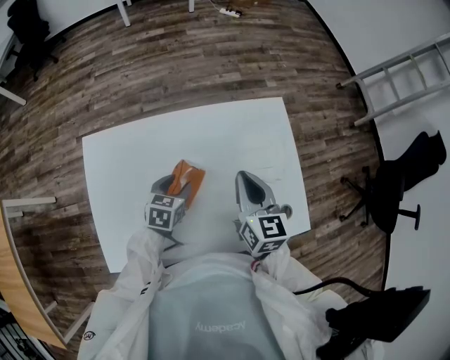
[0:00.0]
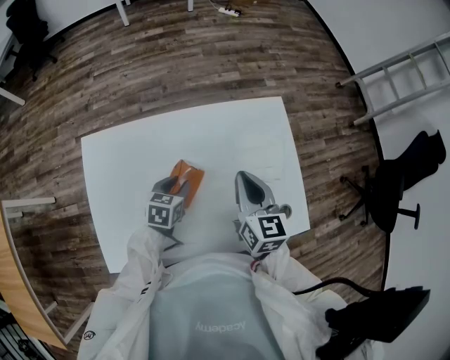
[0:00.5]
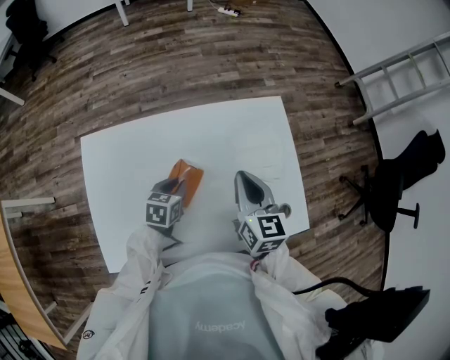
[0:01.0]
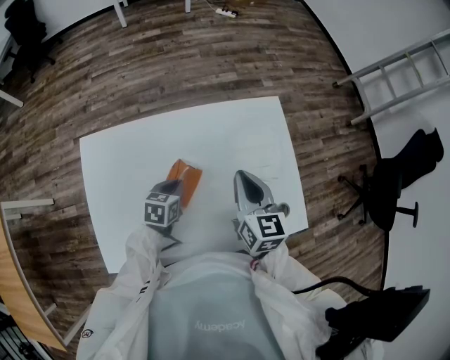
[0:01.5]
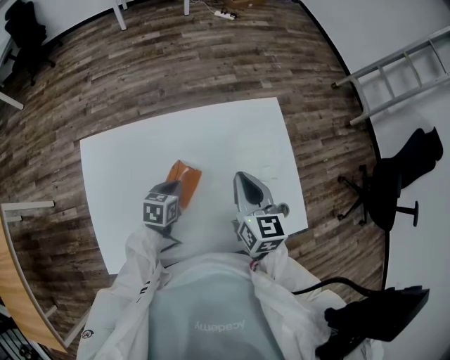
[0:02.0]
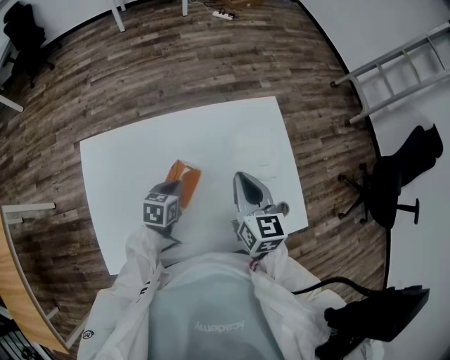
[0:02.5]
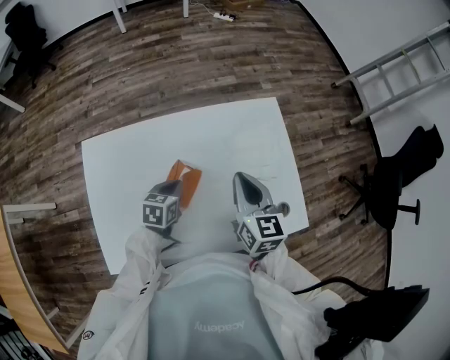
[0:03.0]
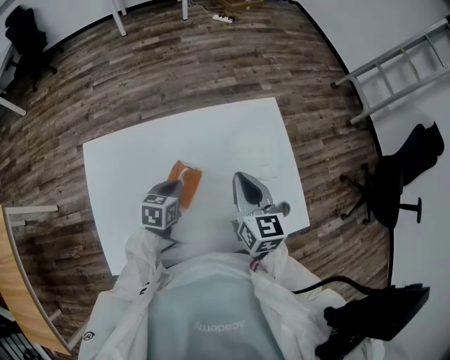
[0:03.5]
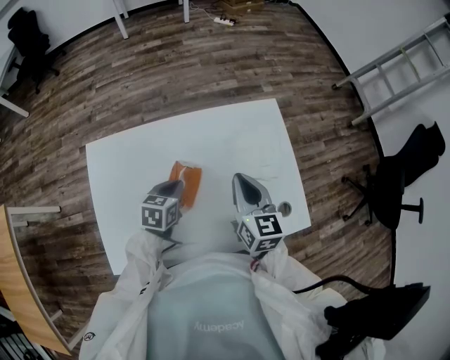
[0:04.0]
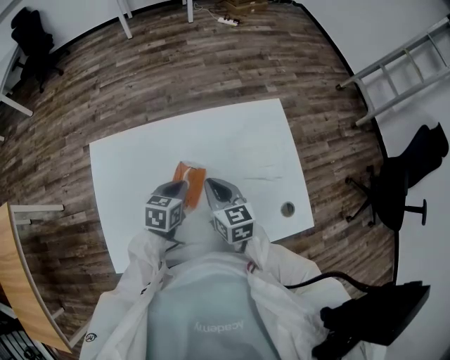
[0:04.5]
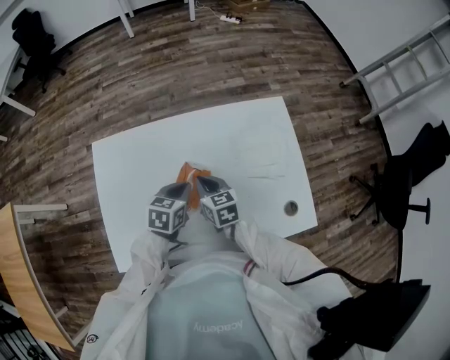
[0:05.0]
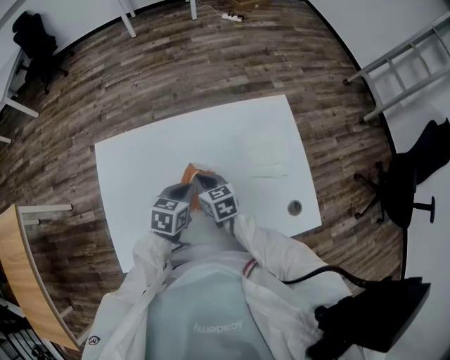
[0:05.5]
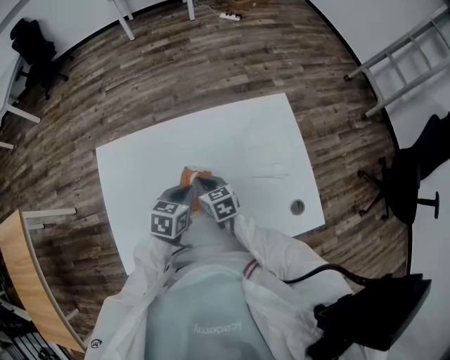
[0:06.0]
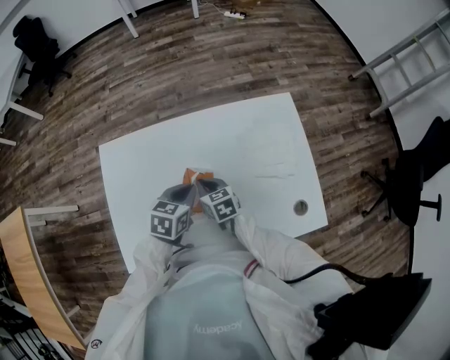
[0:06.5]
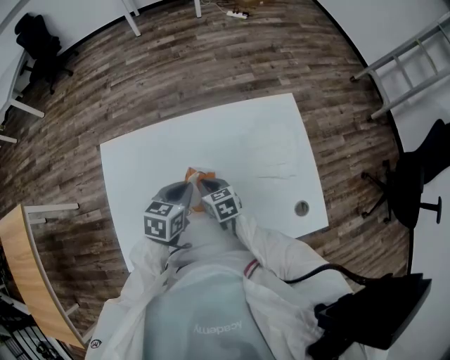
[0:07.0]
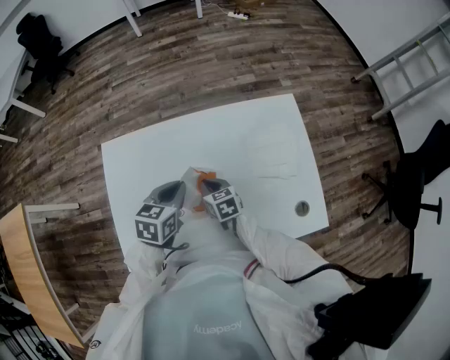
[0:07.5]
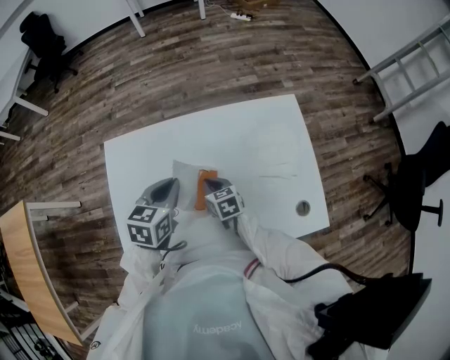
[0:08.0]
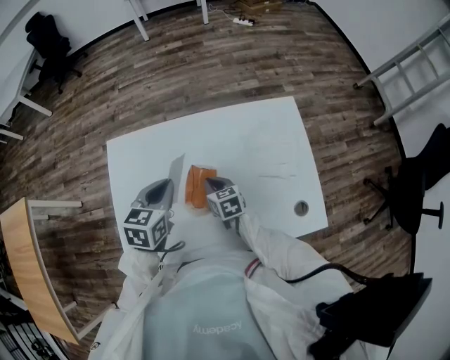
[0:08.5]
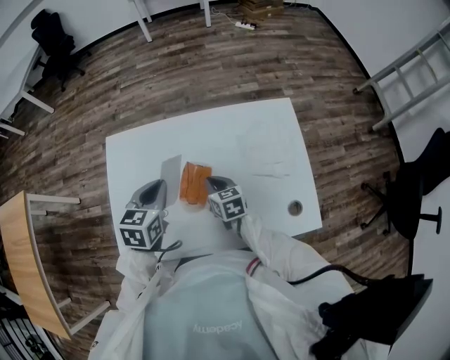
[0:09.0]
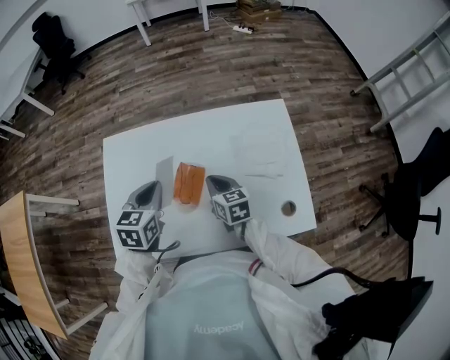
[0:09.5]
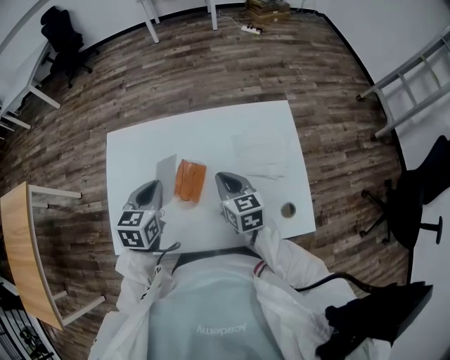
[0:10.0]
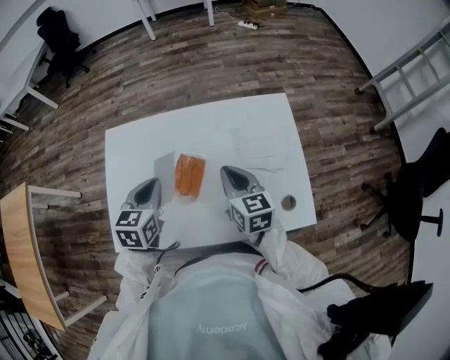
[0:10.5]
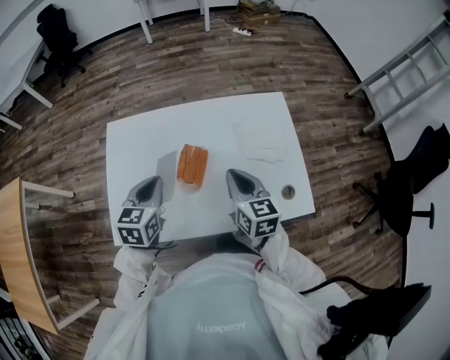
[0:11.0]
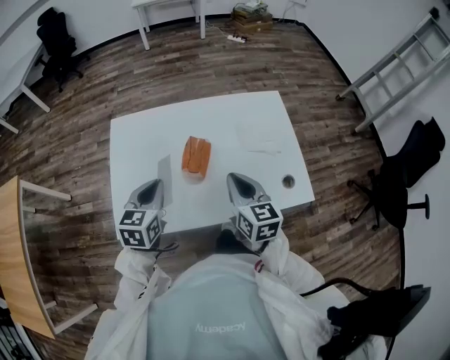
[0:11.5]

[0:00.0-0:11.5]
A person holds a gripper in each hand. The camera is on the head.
0:00.0 to 0:02.0: The left gripper closes.
0:02.0 to 0:04.0: The grippers make only small movements.
0:04.0 to 0:06.0: The right gripper is displaced downward and to the left by approximately 20 cm, and swivels about 30 degrees.
0:06.0 to 0:07.5: The left gripper heads upward, covering roughly 5 cm.
0:07.5 to 0:09.5: The left gripper changes place by about 5 cm; the right gripper moves upward and to the right, roughly 10 cm.
0:09.5 to 0:11.5: The left gripper travels backward by some 10 cm; the right gripper travels upward and backward by approximately 15 cm.

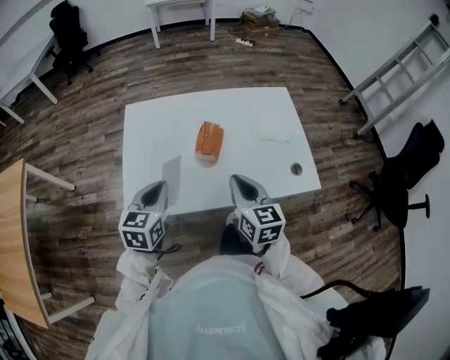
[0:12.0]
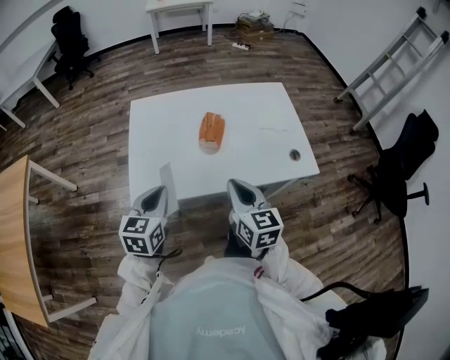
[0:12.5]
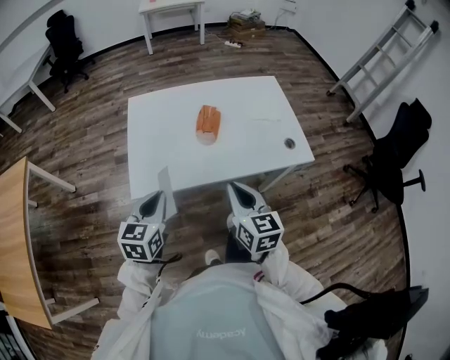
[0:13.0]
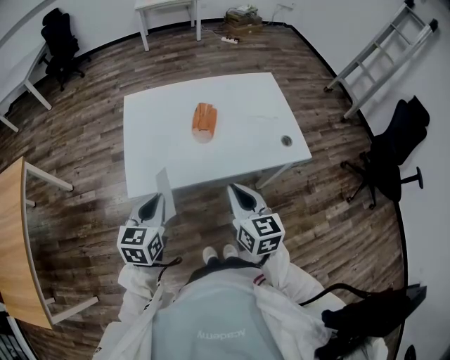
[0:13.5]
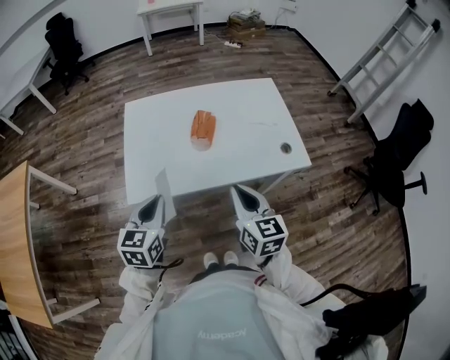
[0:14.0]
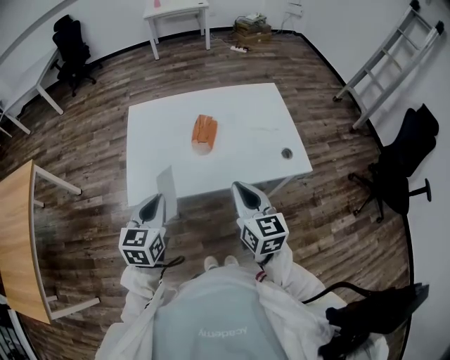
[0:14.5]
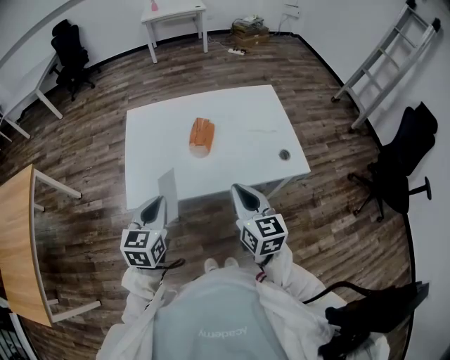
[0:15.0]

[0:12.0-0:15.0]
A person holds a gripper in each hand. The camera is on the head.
0:12.0 to 0:13.5: Both grippers move backward, about 15 cm.
0:13.5 to 0:15.0: The left gripper shifts by about 5 cm; the right gripper changes place by some 5 cm.

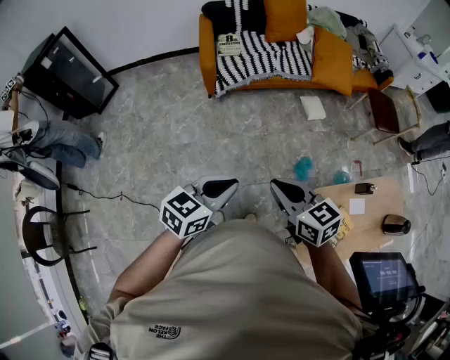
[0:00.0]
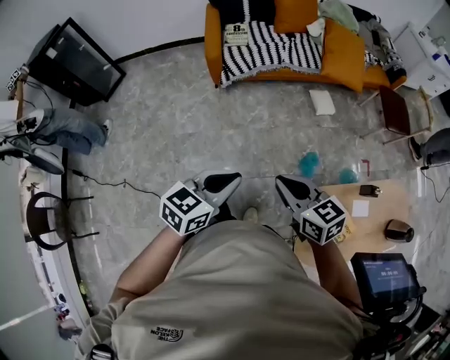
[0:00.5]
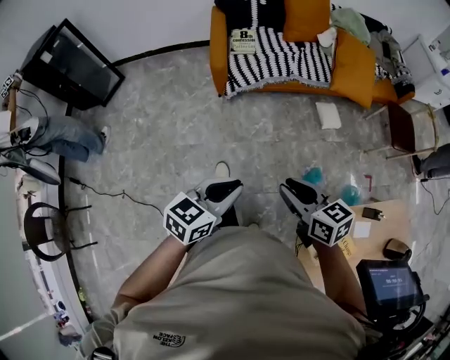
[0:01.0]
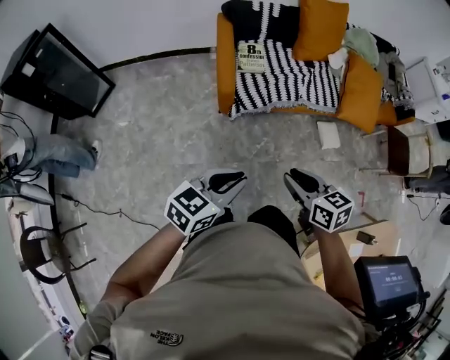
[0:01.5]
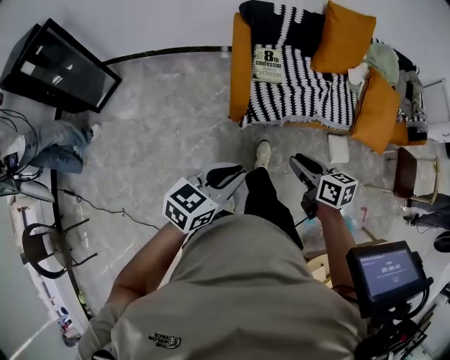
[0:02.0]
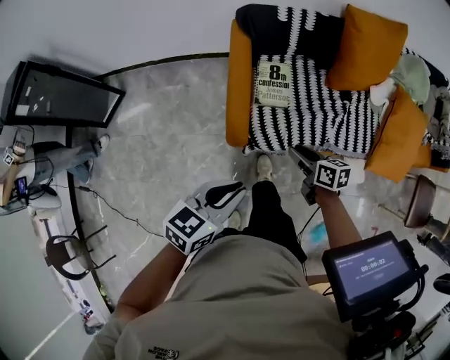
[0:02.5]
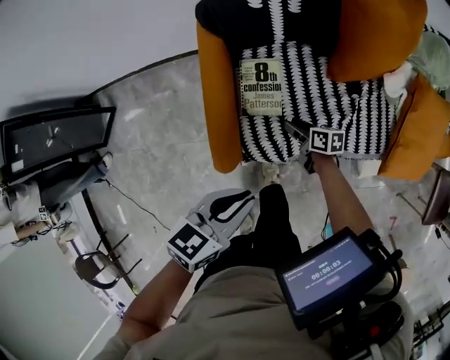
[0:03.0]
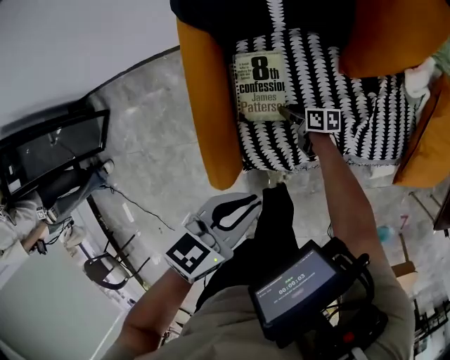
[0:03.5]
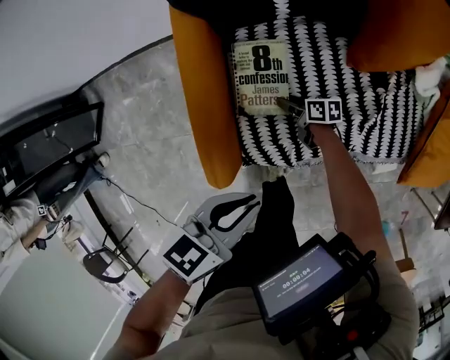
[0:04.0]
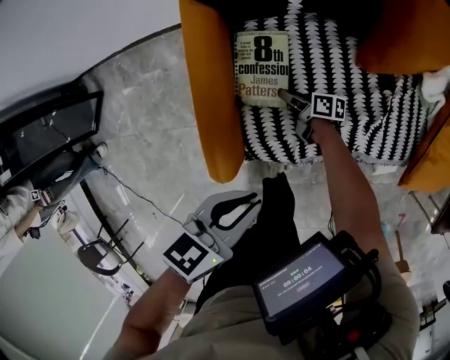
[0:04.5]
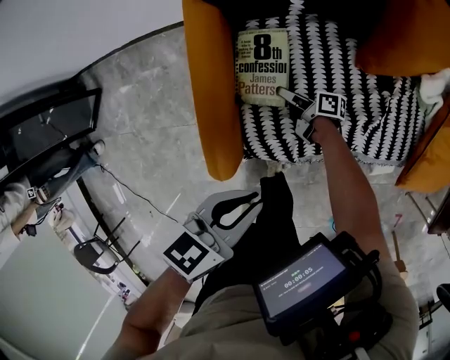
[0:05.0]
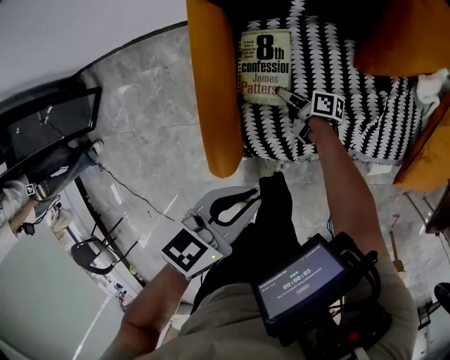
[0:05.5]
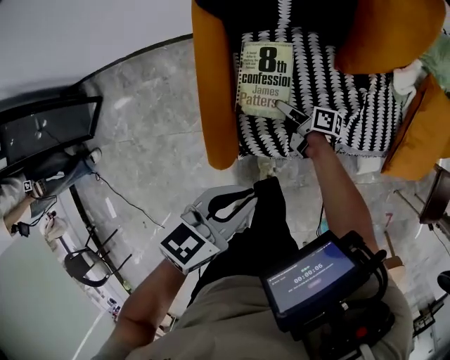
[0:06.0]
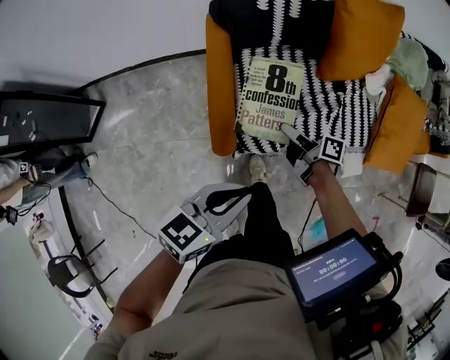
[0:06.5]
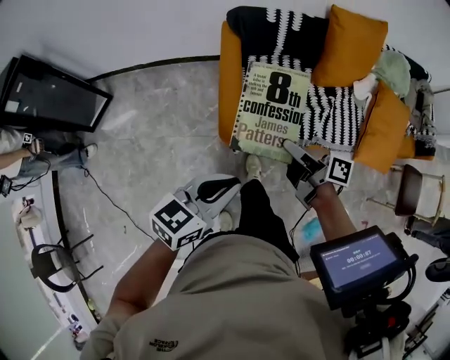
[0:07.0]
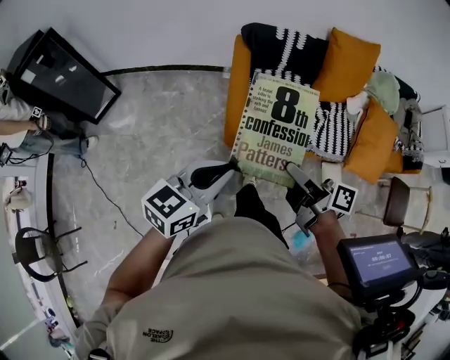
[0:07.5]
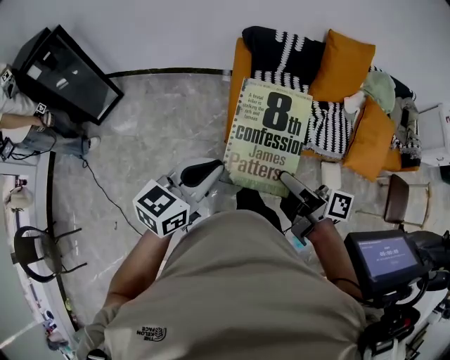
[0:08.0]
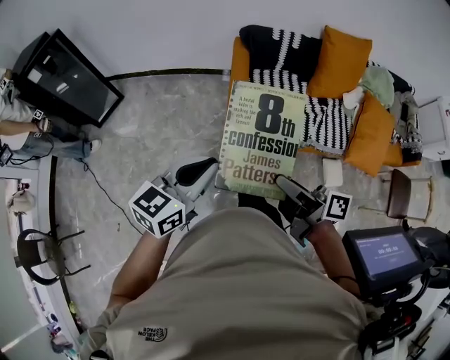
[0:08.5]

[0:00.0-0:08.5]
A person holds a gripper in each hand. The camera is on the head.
0:00.0 to 0:02.0: Both grippers are carried forward, approximately 50 cm. The right gripper turns by some 20 degrees, and opens.
0:02.0 to 0:04.0: The pair of grippers is taken some 40 cm. The right gripper changes its angle by some 30 degrees, and opens up. Meanwhile the left gripper rotates some 20 degrees.
0:04.0 to 0:06.5: The left gripper ends up roughly 20 cm from where it was, while the right gripper moves upward, approximately 25 cm, and swivels roughly 30 degrees.
0:06.5 to 0:08.5: The left gripper goes roughly 25 cm backward, upward and to the left, and turns by roughly 20 degrees. The right gripper is displaced backward and upward by roughly 40 cm, and rotates some 20 degrees.

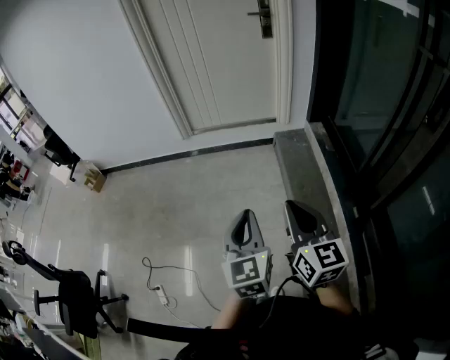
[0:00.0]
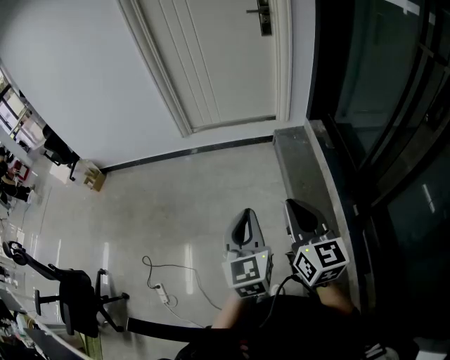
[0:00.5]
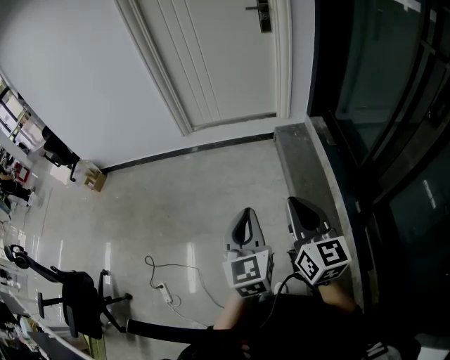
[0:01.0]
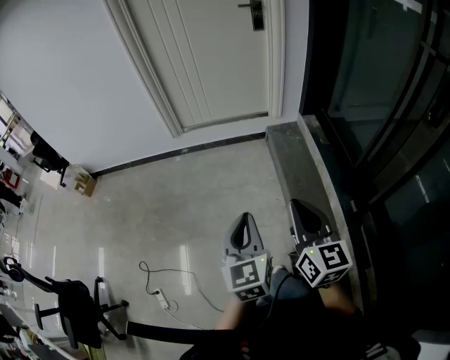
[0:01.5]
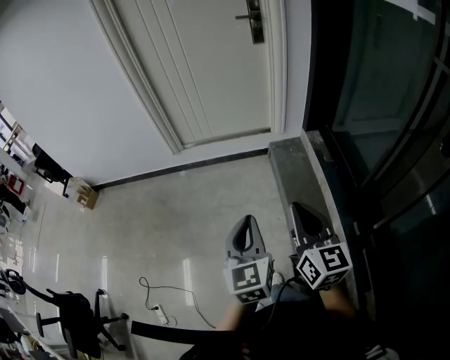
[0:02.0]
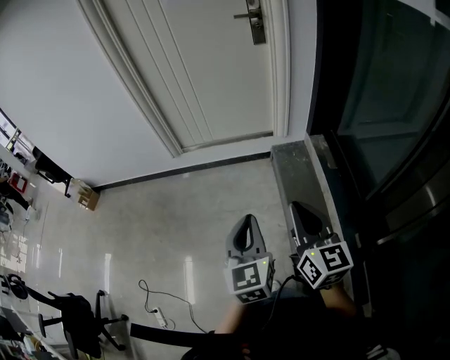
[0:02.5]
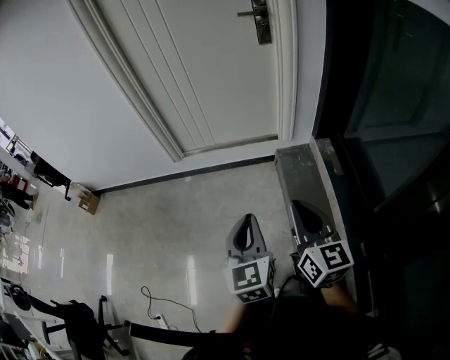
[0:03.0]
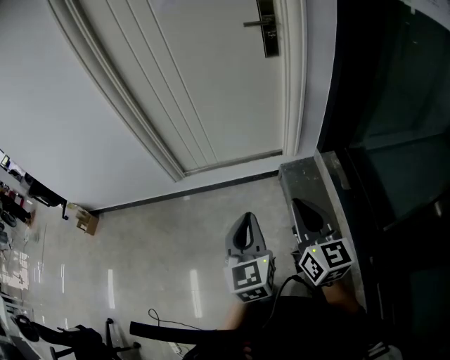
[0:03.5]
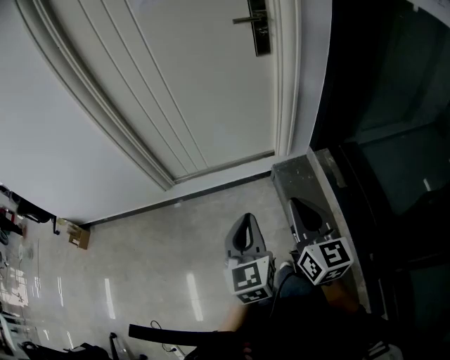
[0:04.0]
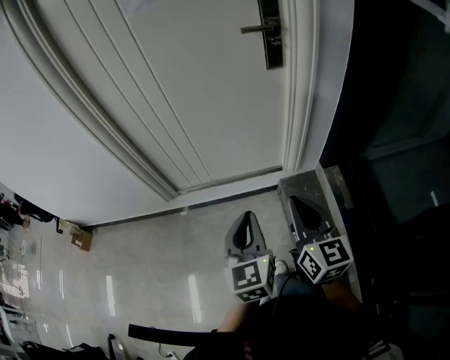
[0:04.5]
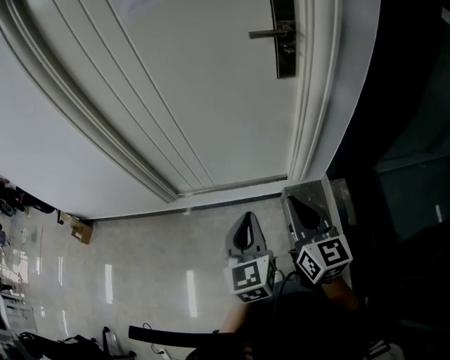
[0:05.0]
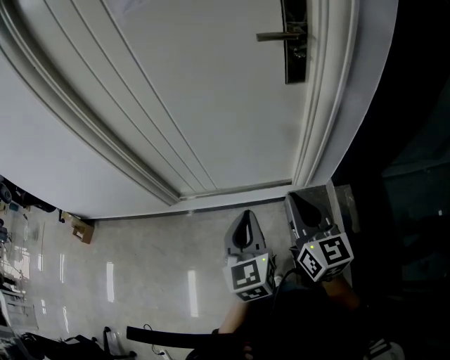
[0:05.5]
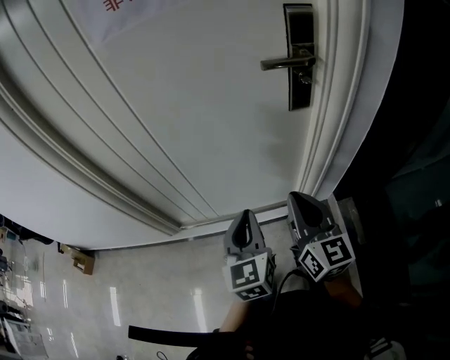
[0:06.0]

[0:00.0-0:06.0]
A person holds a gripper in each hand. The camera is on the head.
0:00.0 to 0:02.0: The two grippers go approximately 15 cm forward and to the right.
0:02.0 to 0:04.0: Both grippers travel together forward, roughly 40 cm.
0:04.0 to 0:06.0: The two grippers go roughly 40 cm forward.
